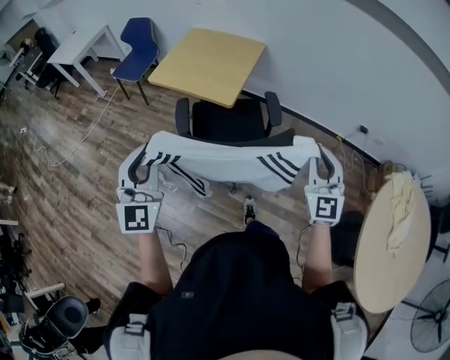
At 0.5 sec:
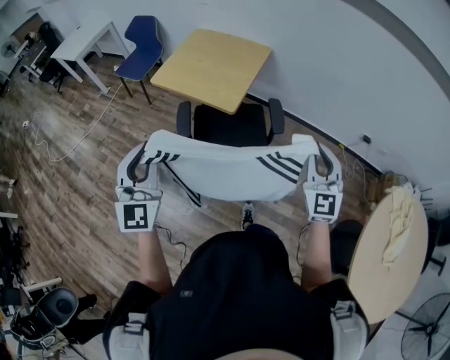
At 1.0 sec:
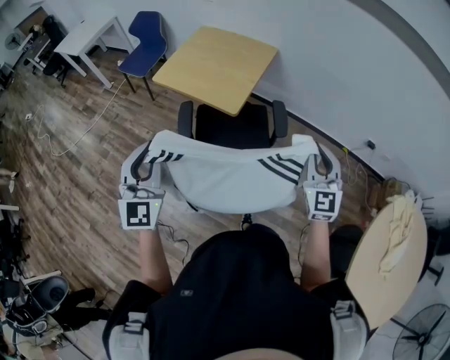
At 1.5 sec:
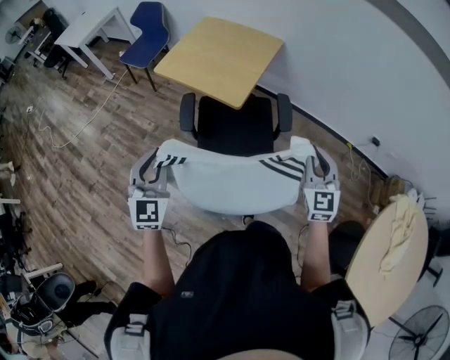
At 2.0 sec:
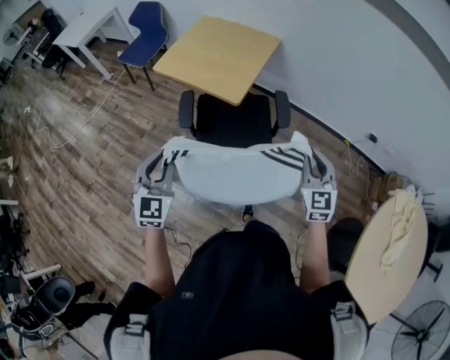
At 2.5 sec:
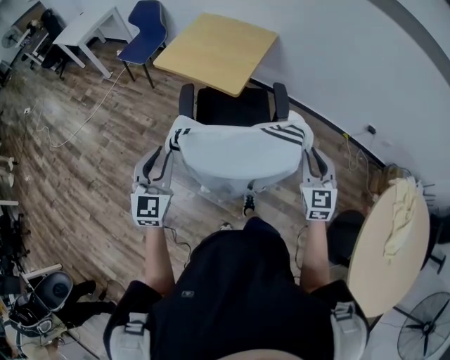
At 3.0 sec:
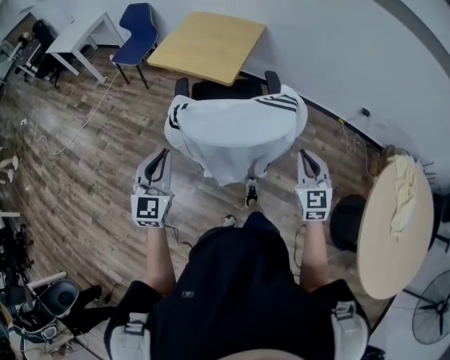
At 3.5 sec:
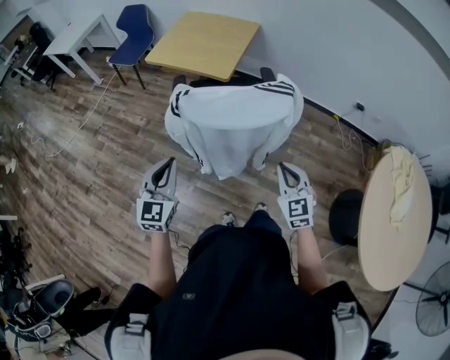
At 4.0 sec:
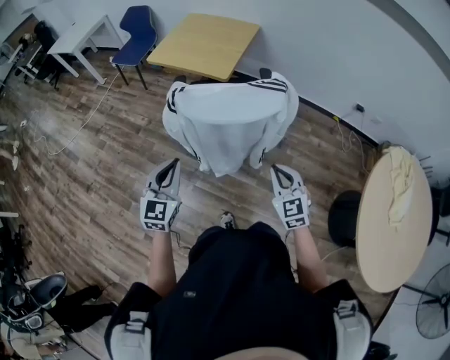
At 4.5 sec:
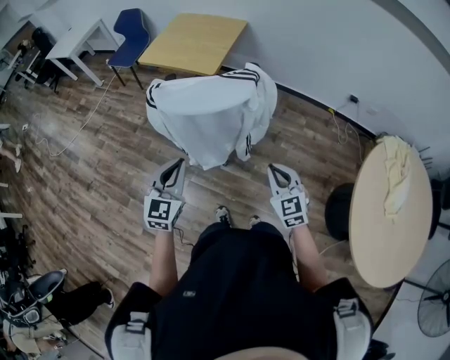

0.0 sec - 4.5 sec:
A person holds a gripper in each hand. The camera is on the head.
0.0 sec - 2.0 sec: The right gripper moves forward and downward, about 15 cm; the left gripper is displaced downward and forward by approximately 15 cm.
2.0 sec - 4.5 sec: The left gripper shifts approximately 30 cm backward and to the right, while the right gripper shifts roughly 30 cm backward.

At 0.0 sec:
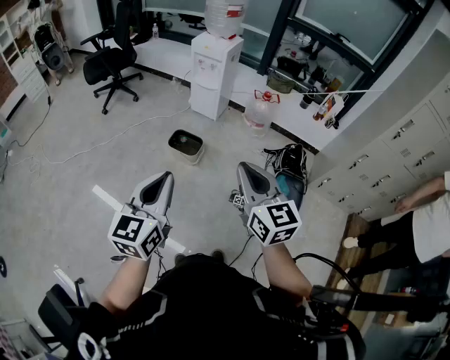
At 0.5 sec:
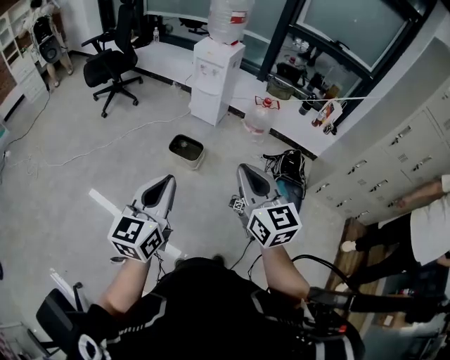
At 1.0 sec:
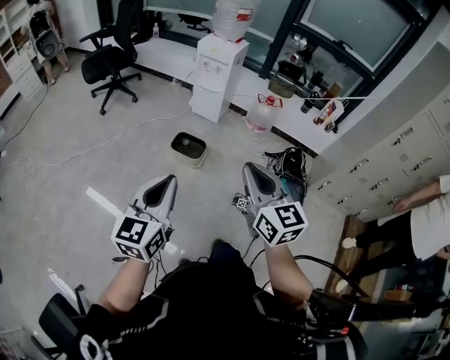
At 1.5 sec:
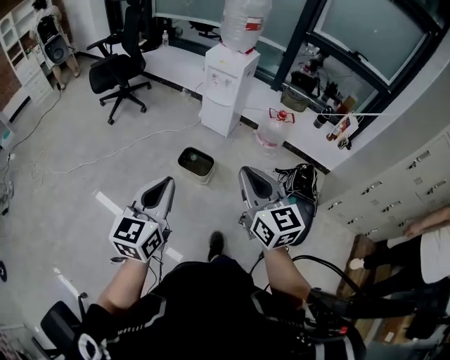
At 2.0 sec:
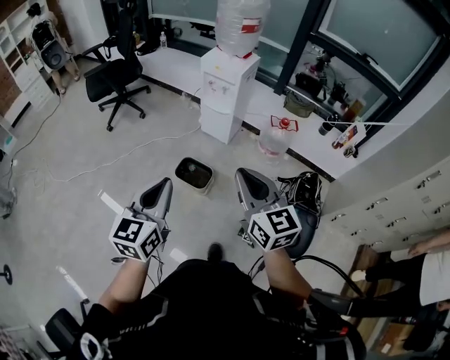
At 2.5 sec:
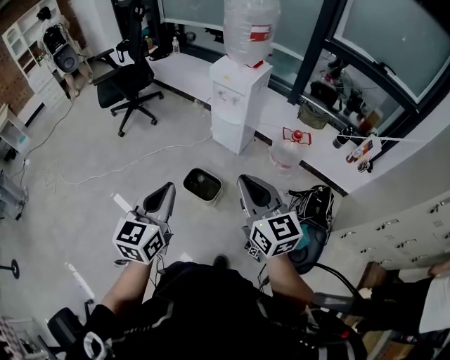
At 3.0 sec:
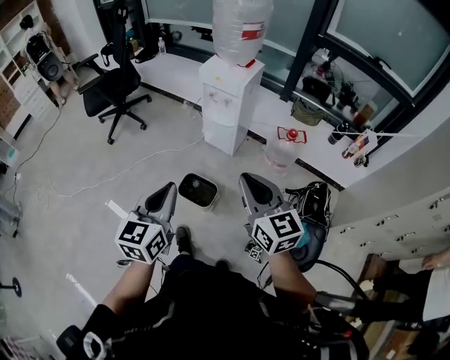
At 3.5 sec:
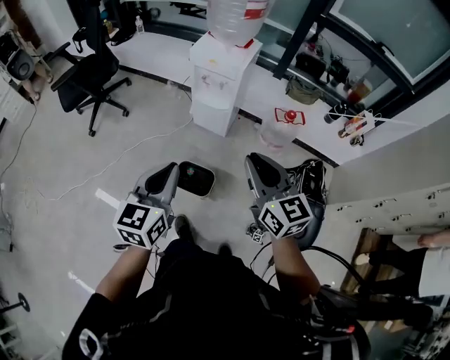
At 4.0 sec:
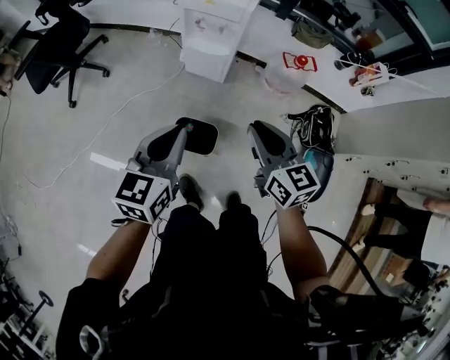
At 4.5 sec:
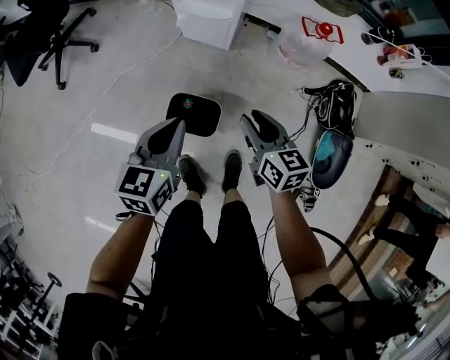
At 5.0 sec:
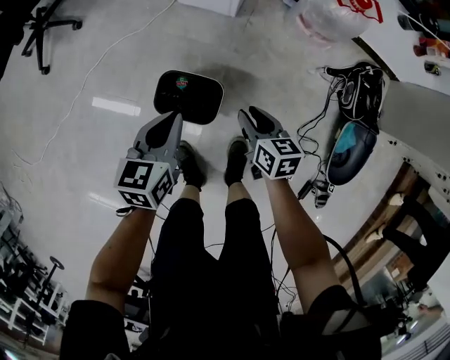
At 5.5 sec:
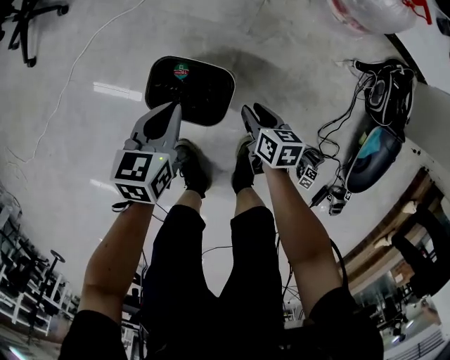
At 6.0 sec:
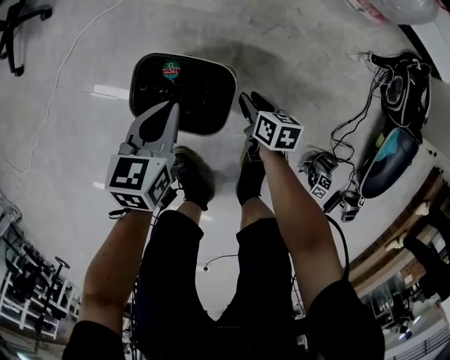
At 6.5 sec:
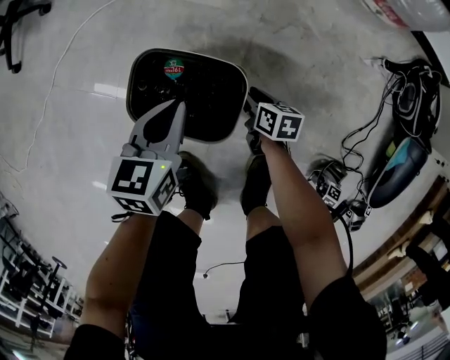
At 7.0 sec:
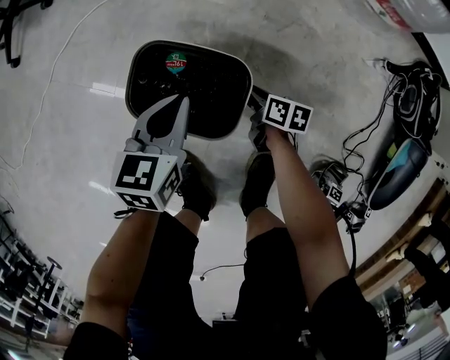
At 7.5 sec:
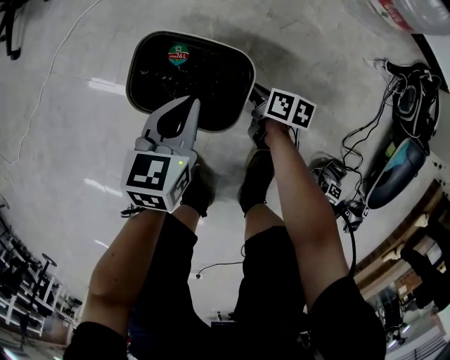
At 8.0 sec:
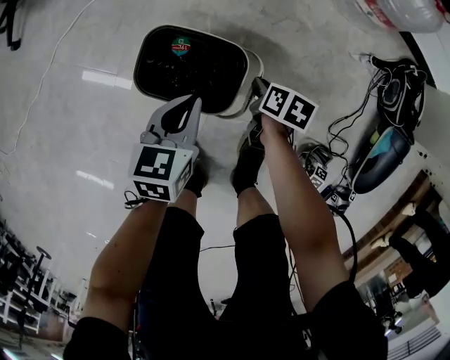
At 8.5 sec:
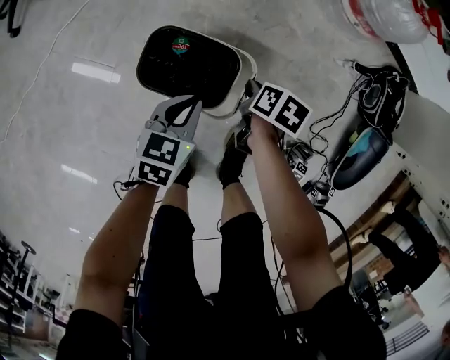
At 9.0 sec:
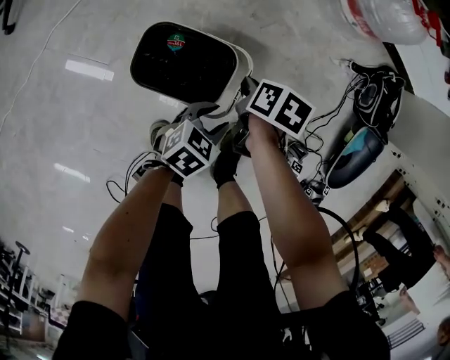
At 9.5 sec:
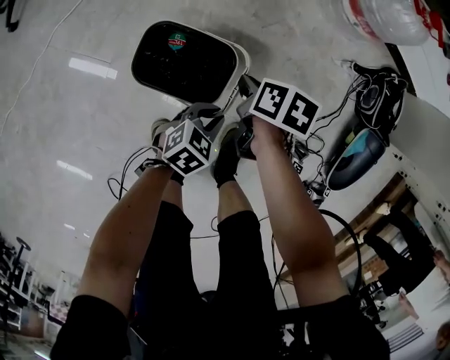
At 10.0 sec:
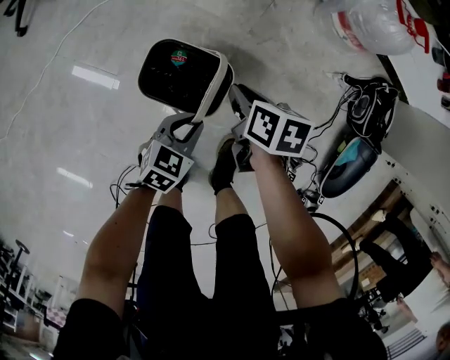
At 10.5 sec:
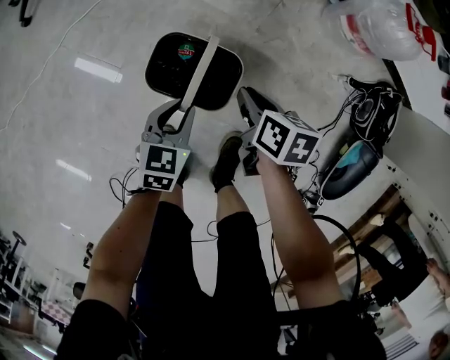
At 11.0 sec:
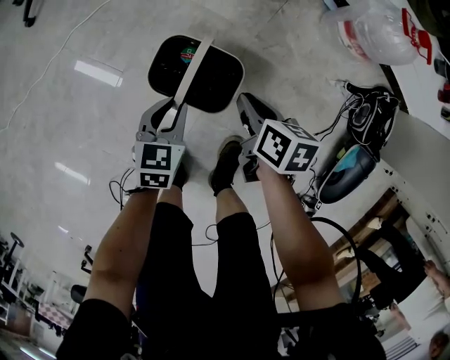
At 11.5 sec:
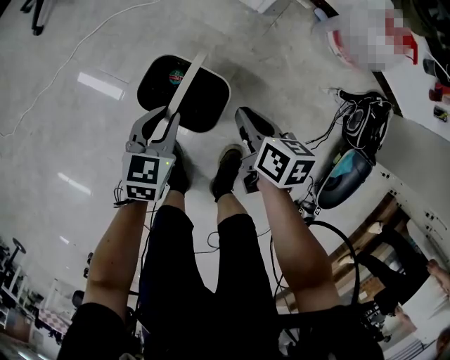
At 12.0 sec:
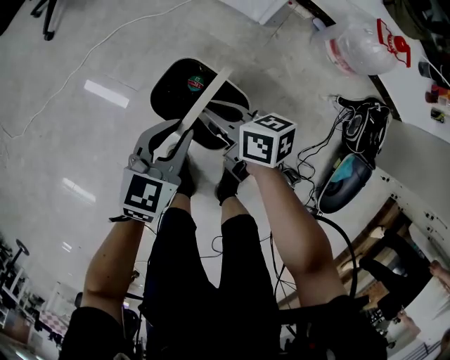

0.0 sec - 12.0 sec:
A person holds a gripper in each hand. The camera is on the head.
0.0 sec - 2.0 sec: The grippers both shift forward by approximately 25 cm.
2.0 sec - 4.0 sec: The grippers both shift forward and downward by some 35 cm. The left gripper changes its angle by some 20 degrees.
4.0 sec - 6.0 sec: Both grippers move downward, about 70 cm. The right gripper tilts its fingers roughly 30 degrees downward, and opens up. Meanwhile the left gripper swivels about 30 degrees.
6.0 sec - 8.0 sec: The right gripper reaches approximately 5 cm downward, then returns; the left gripper moves backward, some 5 cm.
8.0 sec - 10.0 sec: The right gripper travels upward by roughly 20 cm, while the left gripper swivels about 20 degrees, and opens and closes again.
10.0 sec - 12.0 sec: The right gripper moves upward and to the left, about 15 cm, and angles its fingers upward, by some 30 degrees; the left gripper is displaced upward by roughly 20 cm, and turns by some 20 degrees.

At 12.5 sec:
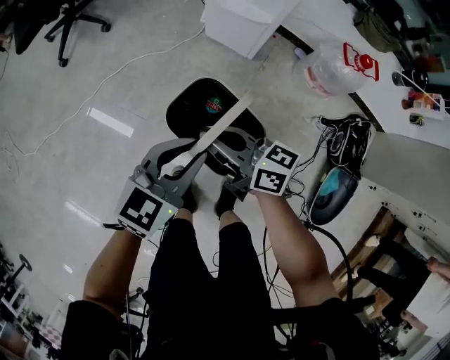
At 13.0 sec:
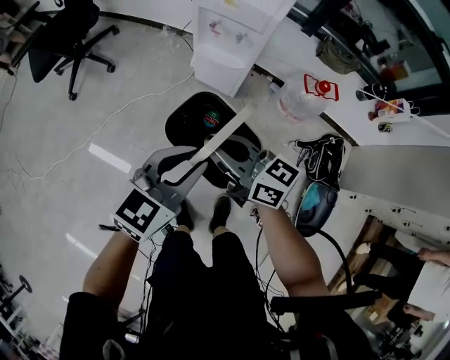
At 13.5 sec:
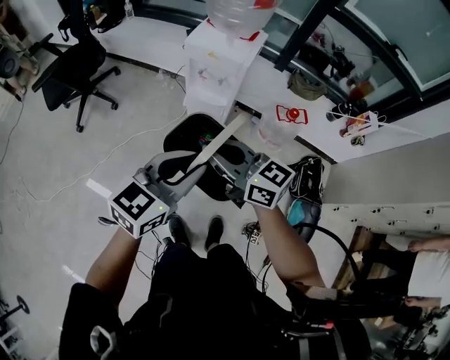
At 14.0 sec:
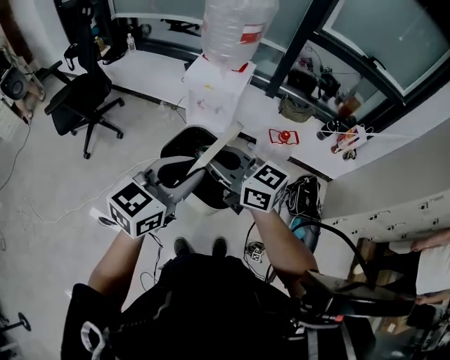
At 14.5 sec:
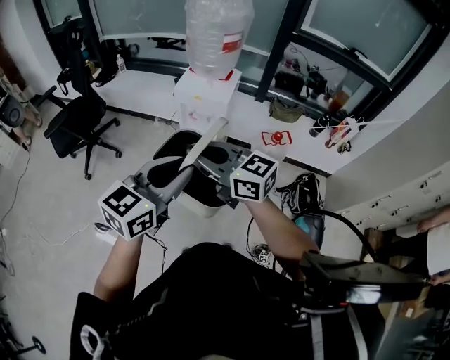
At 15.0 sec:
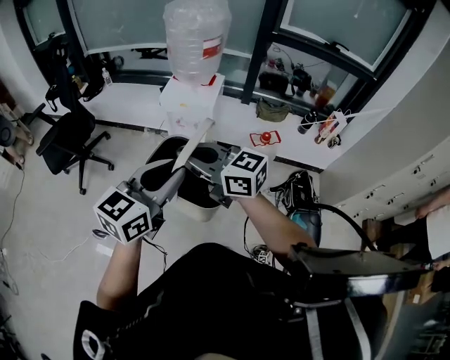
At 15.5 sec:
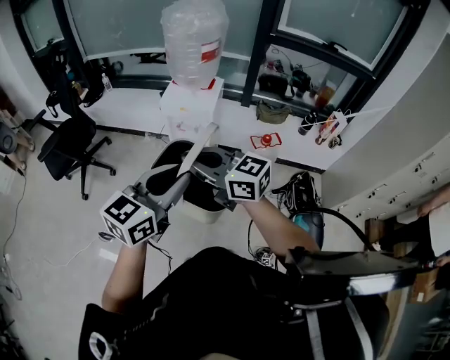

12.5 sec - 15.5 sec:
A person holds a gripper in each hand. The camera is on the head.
12.5 sec - 14.0 sec: Both grippers move upward, about 40 cm. The left gripper swivels approximately 20 degrees. The right gripper rotates roughly 30 degrees.
14.0 sec - 15.5 sec: There are only small adjustments of the grippers.

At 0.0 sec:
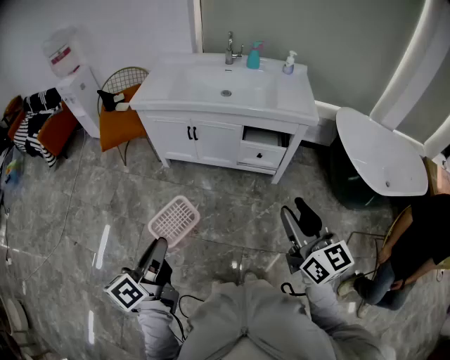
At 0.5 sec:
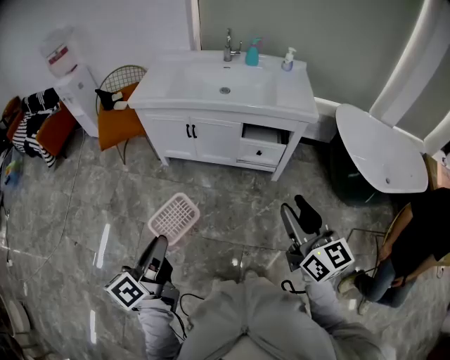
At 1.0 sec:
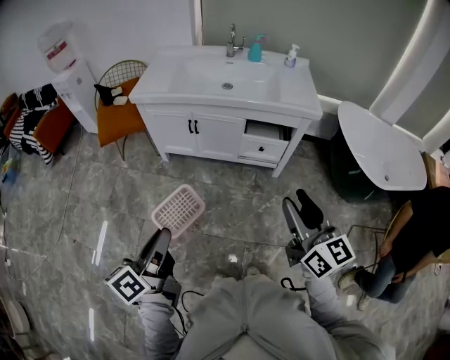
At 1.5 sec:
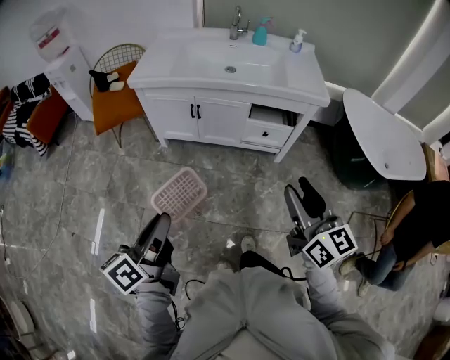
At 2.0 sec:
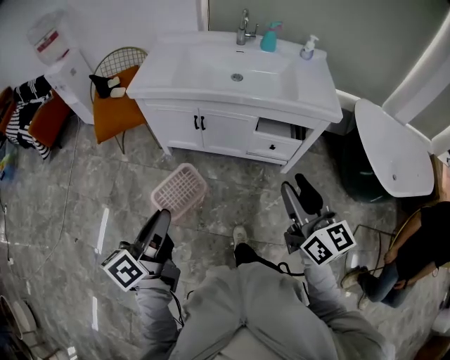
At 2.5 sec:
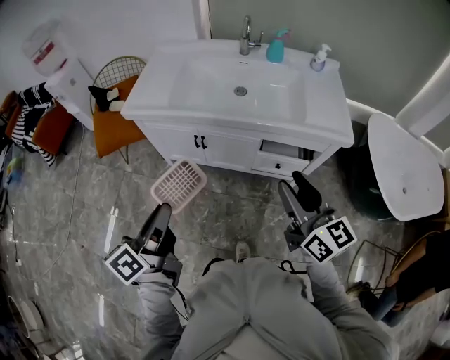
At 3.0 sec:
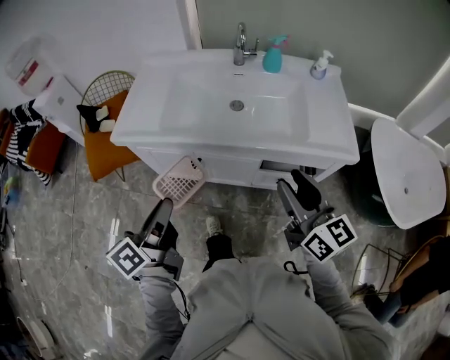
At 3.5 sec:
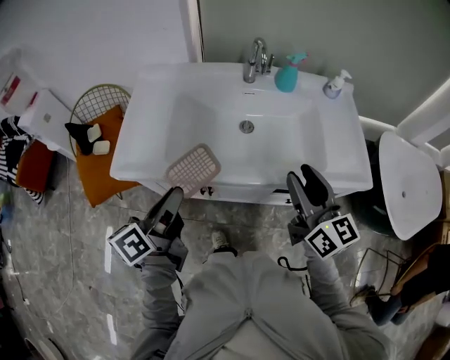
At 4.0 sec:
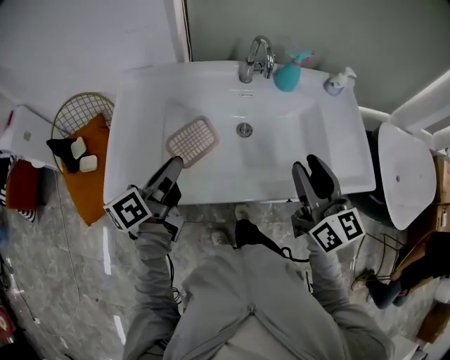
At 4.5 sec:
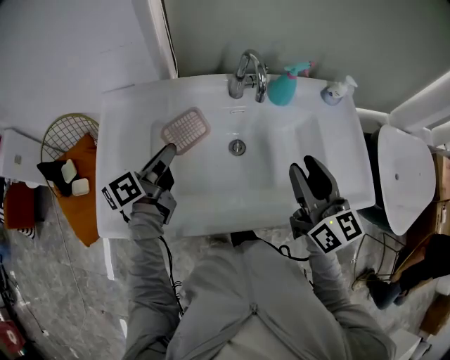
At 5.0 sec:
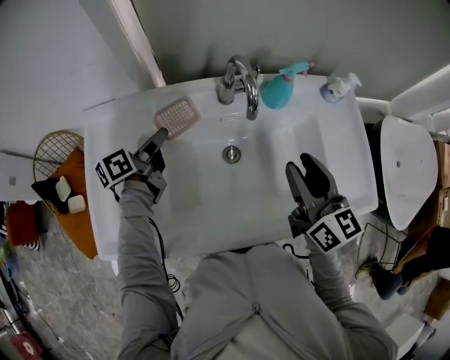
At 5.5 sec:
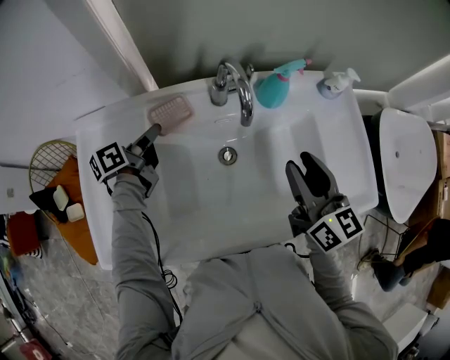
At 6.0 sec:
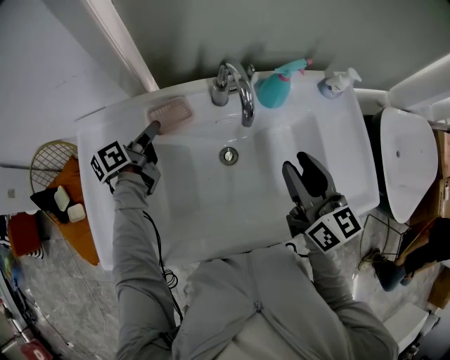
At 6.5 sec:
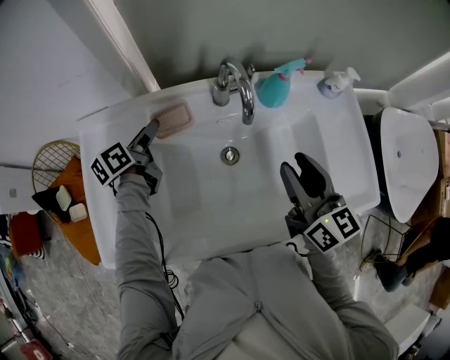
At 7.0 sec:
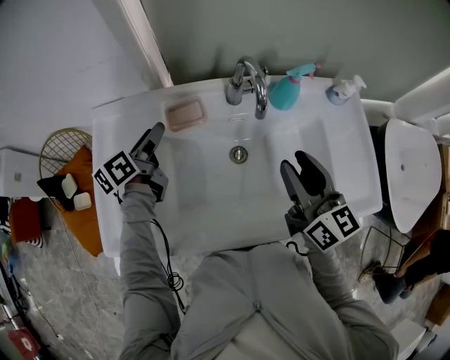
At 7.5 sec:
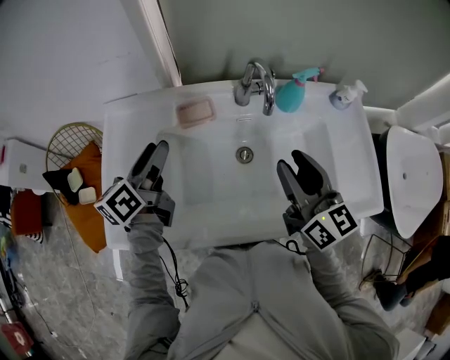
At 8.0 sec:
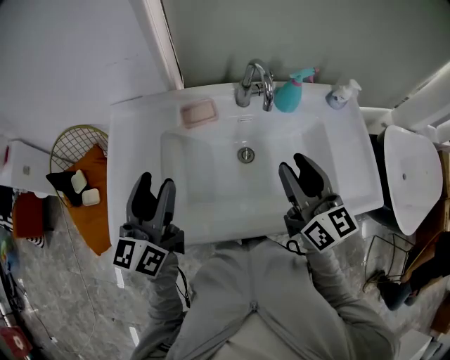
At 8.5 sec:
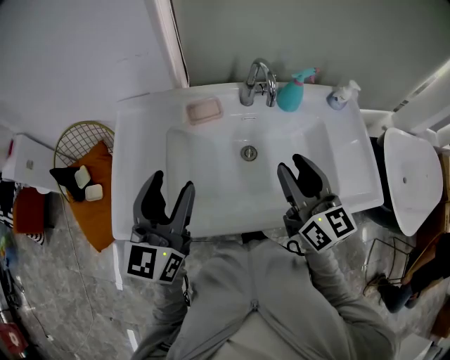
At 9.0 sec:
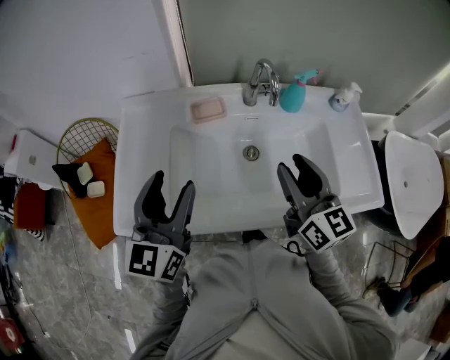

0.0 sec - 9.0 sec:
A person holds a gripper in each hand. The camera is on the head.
0.0 sec - 2.0 sec: The left gripper is displaced forward by roughly 15 cm. Meanwhile the right gripper goes approximately 15 cm forward and to the left.
2.0 sec - 4.5 sec: The pair of grippers is taken forward, roughly 60 cm. The left gripper rotates some 20 degrees.
4.5 sec - 7.0 sec: The right gripper shifts about 5 cm forward; the left gripper moves forward, approximately 10 cm, and opens up.
7.0 sec - 9.0 sec: The right gripper travels backward and to the left by some 10 cm; the left gripper travels backward and upward by about 30 cm, and twists approximately 40 degrees clockwise, seen from behind.
